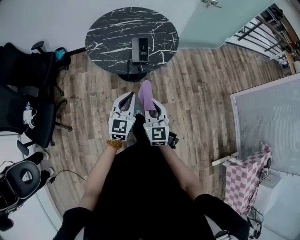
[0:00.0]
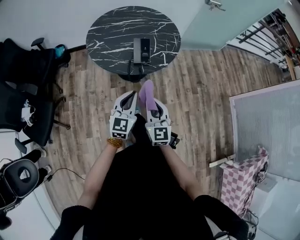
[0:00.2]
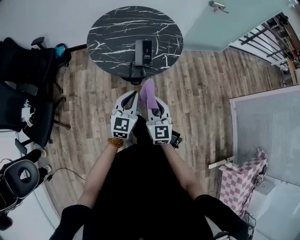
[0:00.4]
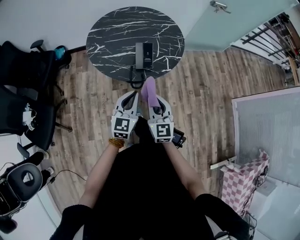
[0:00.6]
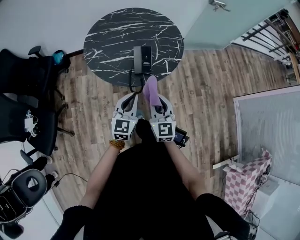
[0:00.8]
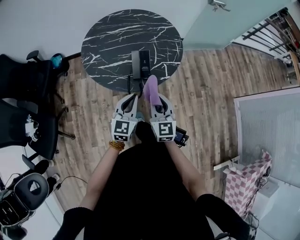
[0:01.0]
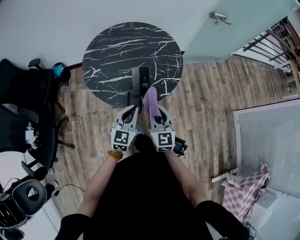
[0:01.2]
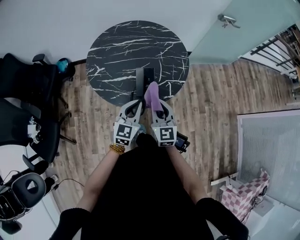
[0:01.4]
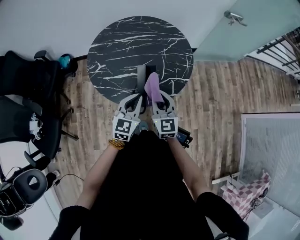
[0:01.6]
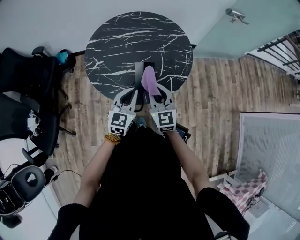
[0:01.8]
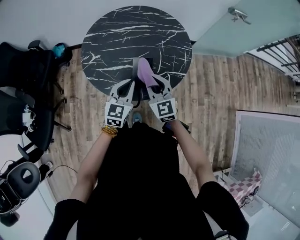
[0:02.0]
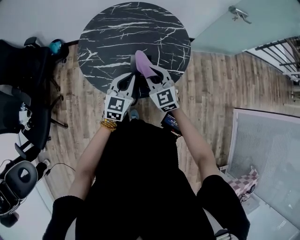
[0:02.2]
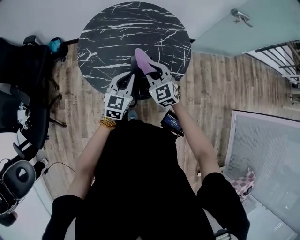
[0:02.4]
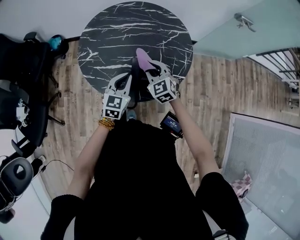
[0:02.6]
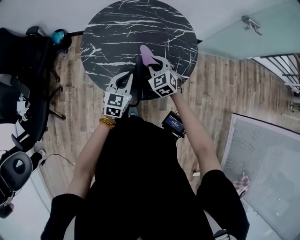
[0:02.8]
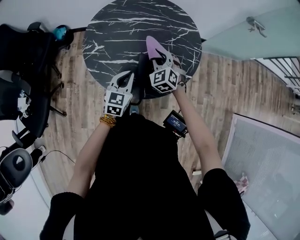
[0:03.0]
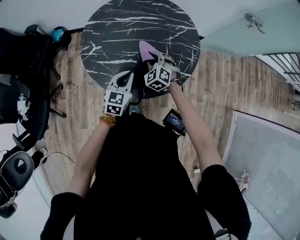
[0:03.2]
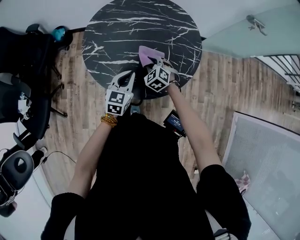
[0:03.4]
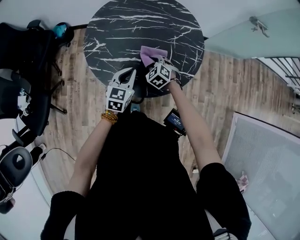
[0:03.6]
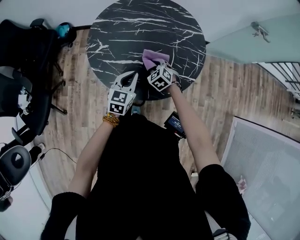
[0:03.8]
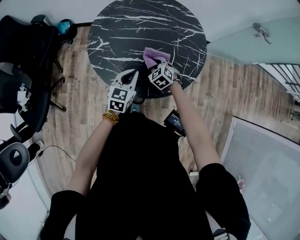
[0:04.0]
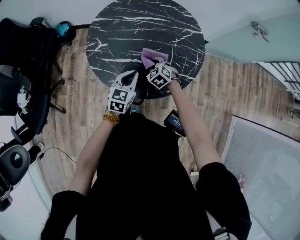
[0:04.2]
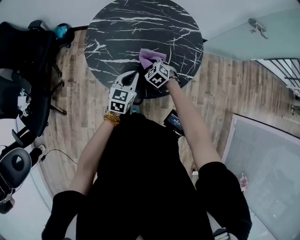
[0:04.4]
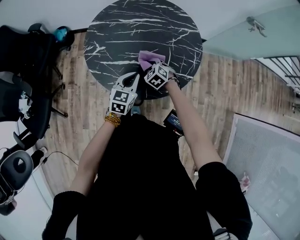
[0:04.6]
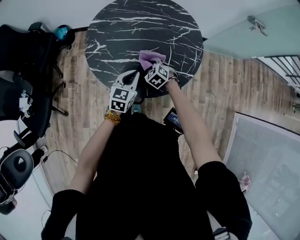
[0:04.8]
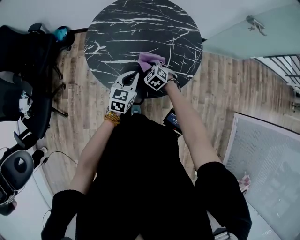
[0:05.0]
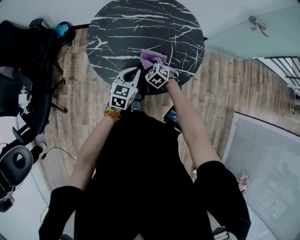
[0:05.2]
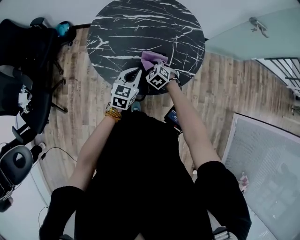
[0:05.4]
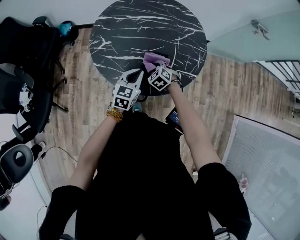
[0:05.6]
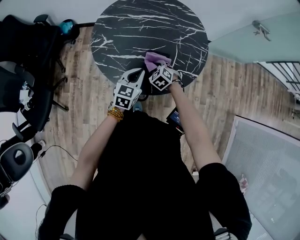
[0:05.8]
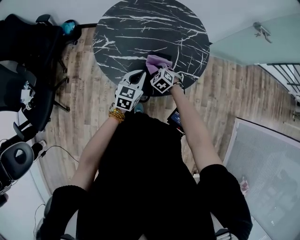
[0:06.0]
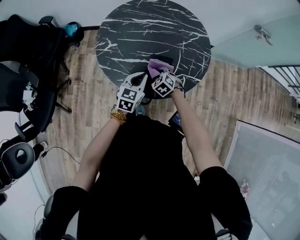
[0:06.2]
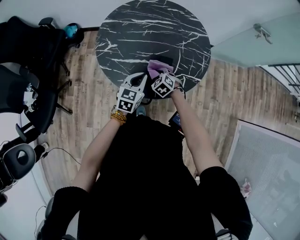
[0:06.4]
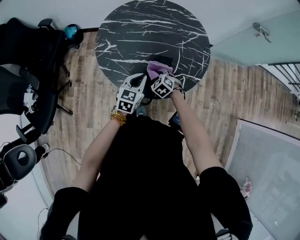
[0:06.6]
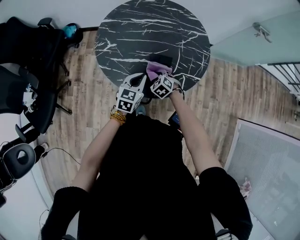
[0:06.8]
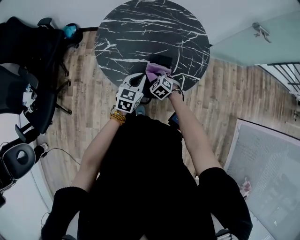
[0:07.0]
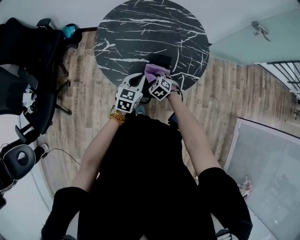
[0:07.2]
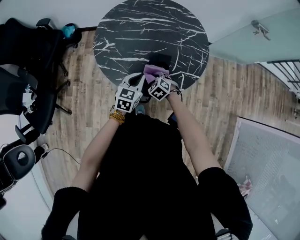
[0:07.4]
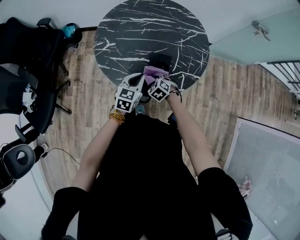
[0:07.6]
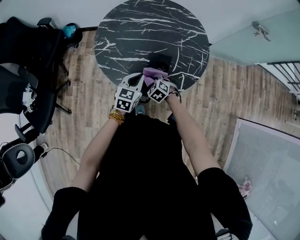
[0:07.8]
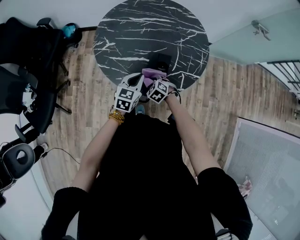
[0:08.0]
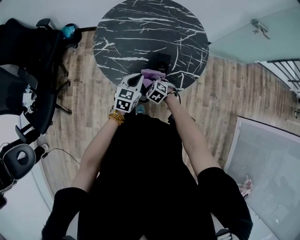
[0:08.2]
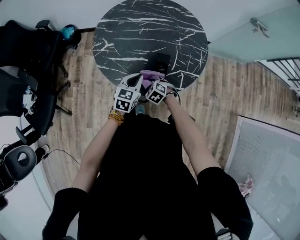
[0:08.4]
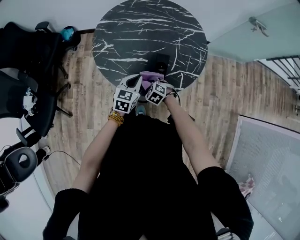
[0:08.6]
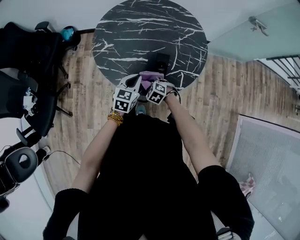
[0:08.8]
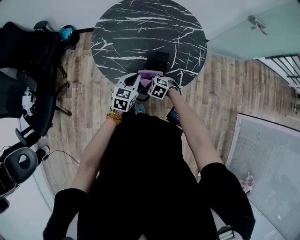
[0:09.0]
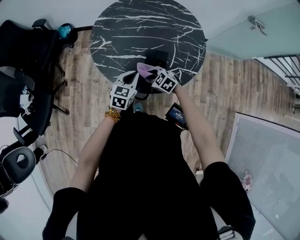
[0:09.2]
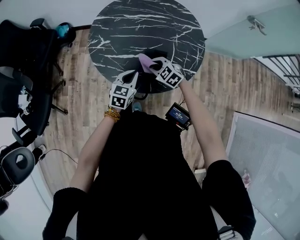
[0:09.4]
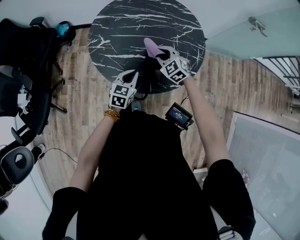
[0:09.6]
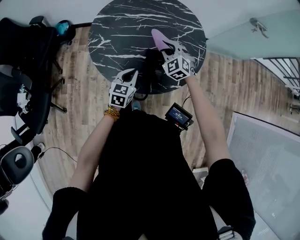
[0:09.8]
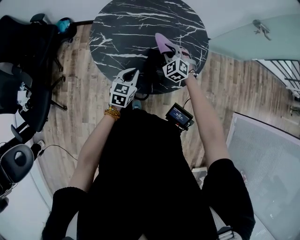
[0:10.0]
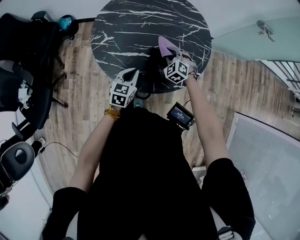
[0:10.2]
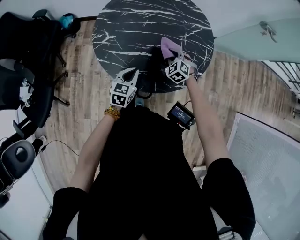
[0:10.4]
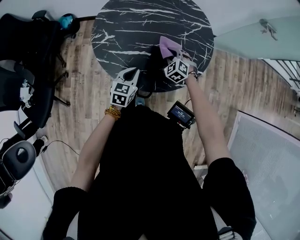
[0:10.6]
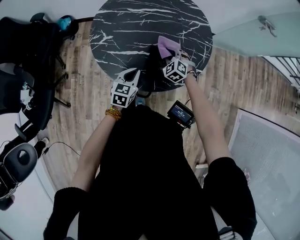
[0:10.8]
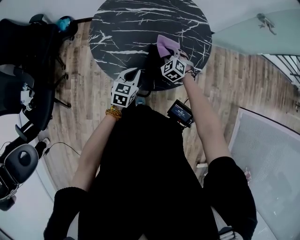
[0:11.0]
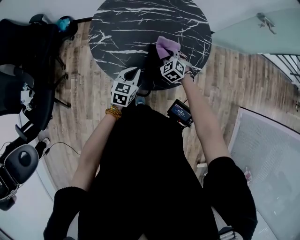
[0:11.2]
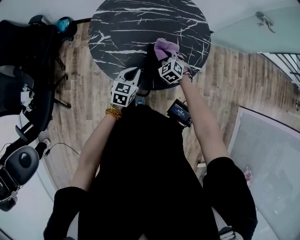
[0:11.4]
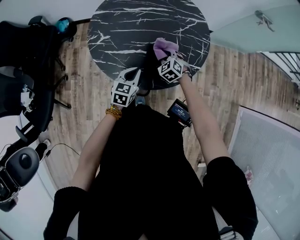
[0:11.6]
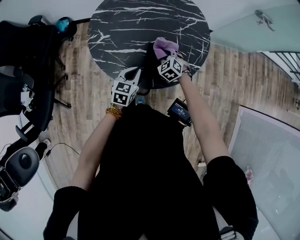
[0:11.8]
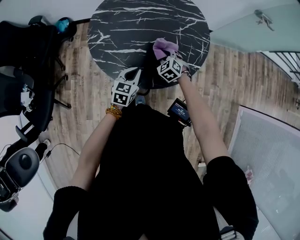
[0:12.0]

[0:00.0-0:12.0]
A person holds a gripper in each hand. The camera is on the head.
0:00.0 to 0:01.6: The two grippers go about 25 cm forward.
0:01.6 to 0:03.0: The left gripper is displaced forward and downward by some 15 cm. The right gripper shifts approximately 20 cm forward and downward, and changes its angle by about 40 degrees.
0:03.0 to 0:04.4: The right gripper travels downward by some 15 cm, and turns by about 30 degrees.
0:04.4 to 0:06.0: There are only small adjustments of the grippers.
0:06.0 to 0:07.6: The right gripper shifts approximately 5 cm backward.
0:07.6 to 0:09.0: The grippers move only a little.
0:09.0 to 0:10.4: The right gripper shifts some 20 cm forward, to the right and upward, and swivels about 30 degrees.
0:10.4 to 0:12.0: The grippers move only a little.

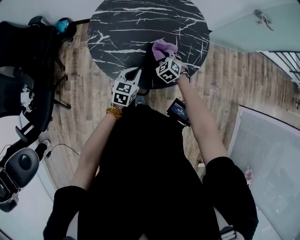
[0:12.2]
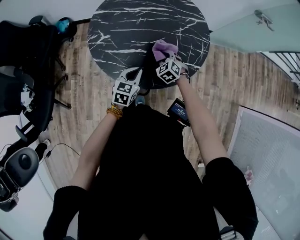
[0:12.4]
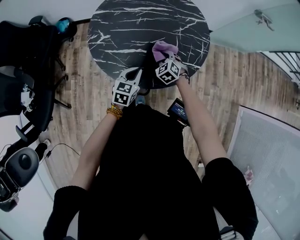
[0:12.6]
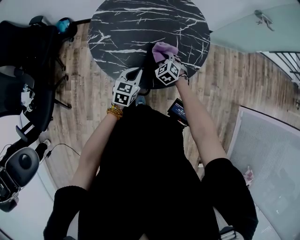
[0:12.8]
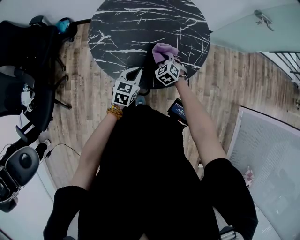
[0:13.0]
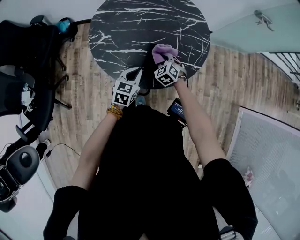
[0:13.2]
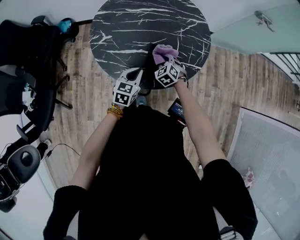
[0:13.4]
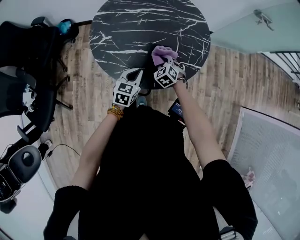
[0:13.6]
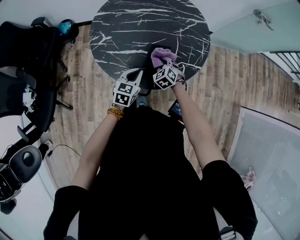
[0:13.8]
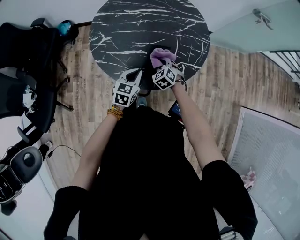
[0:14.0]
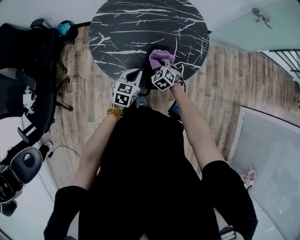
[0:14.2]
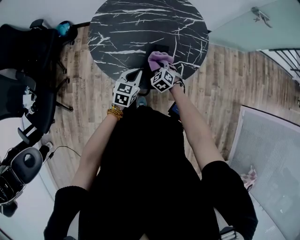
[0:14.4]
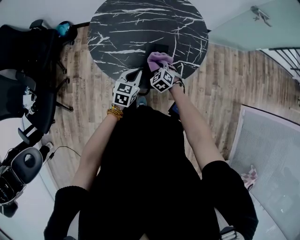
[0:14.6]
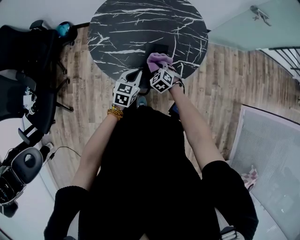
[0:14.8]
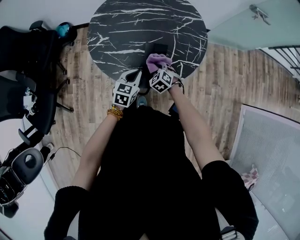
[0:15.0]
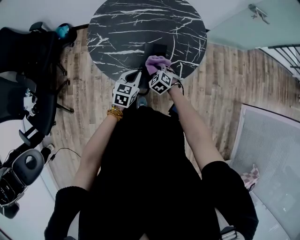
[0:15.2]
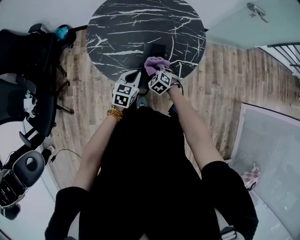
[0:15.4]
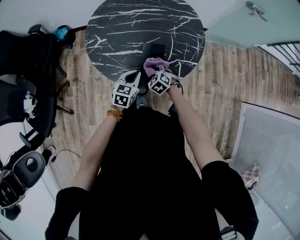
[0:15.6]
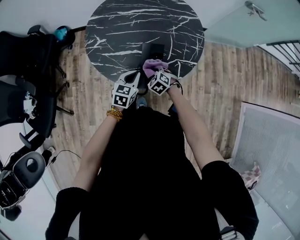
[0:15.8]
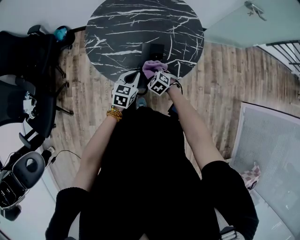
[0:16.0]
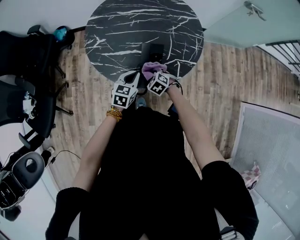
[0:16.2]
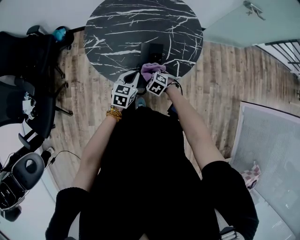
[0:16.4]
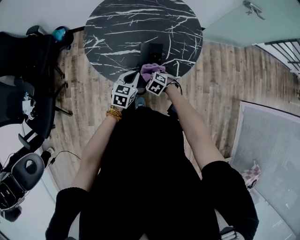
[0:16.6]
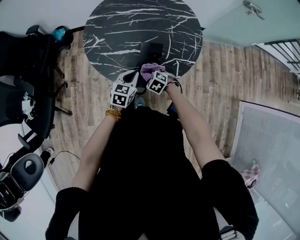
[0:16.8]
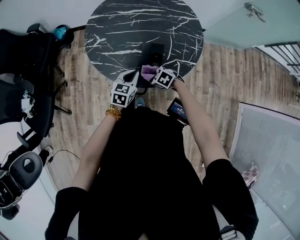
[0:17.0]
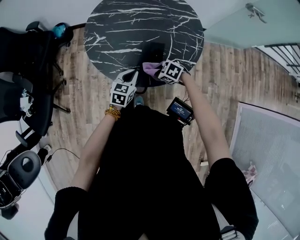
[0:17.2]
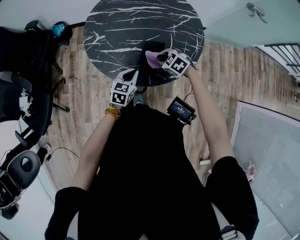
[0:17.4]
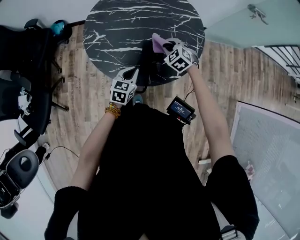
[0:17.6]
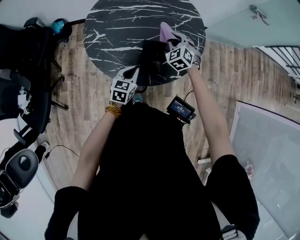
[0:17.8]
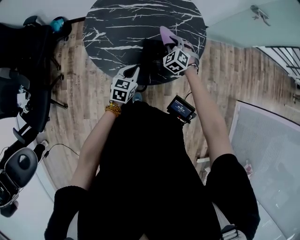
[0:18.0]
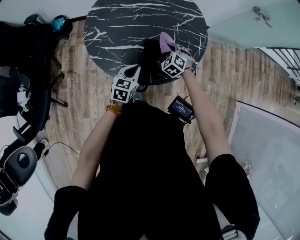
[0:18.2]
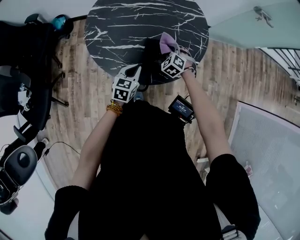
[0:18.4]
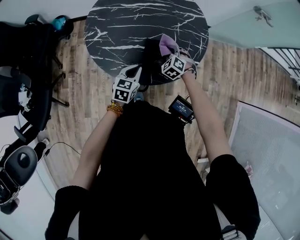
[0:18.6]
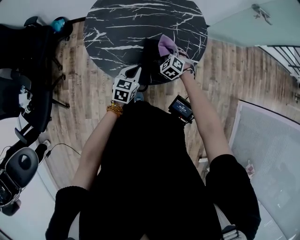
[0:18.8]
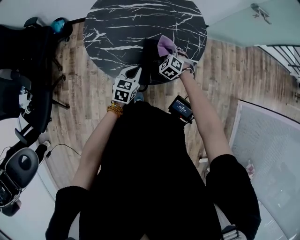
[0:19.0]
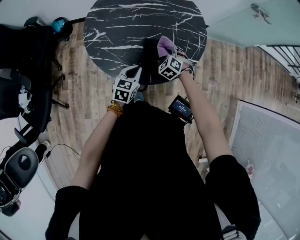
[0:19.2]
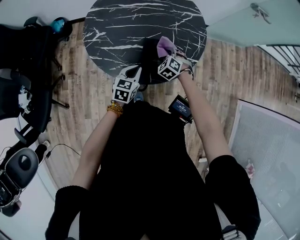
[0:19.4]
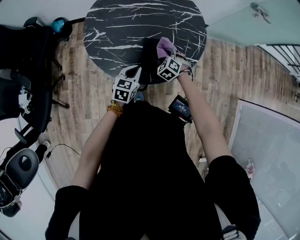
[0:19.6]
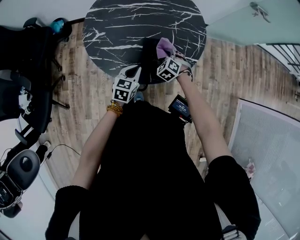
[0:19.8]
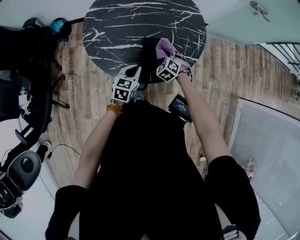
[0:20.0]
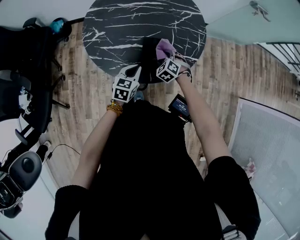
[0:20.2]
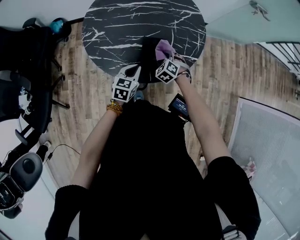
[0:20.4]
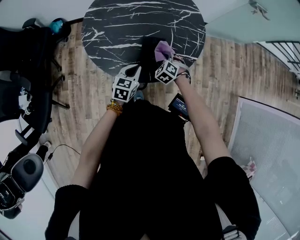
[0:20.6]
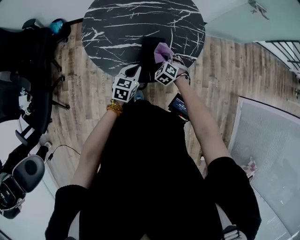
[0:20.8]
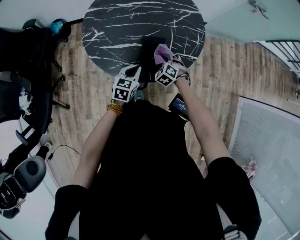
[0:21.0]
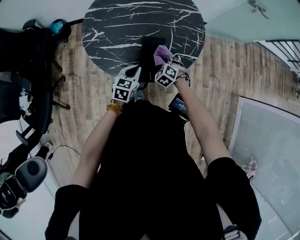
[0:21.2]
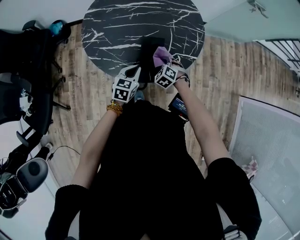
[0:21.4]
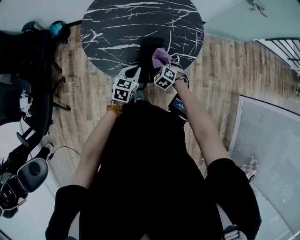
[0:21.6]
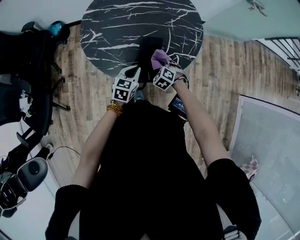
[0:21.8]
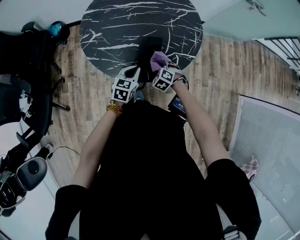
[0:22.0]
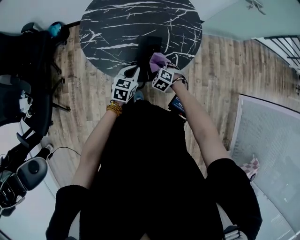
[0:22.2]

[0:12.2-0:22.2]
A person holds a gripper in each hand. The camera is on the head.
0:12.2 to 0:13.6: The grippers make only small movements.
0:13.6 to 0:15.0: The right gripper ends up approximately 5 cm from where it was.
0:15.0 to 0:16.4: The right gripper travels backward by approximately 5 cm.
0:16.4 to 0:18.0: The right gripper shifts by roughly 20 cm, and swivels approximately 30 degrees.
0:18.0 to 0:19.4: The right gripper heads downward and backward, covering approximately 10 cm.
0:19.4 to 0:20.8: The grippers make only small movements.
0:20.8 to 0:22.2: The right gripper goes roughly 5 cm backward.

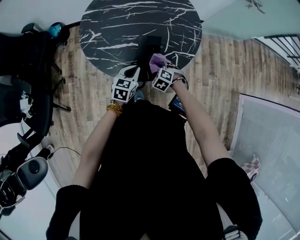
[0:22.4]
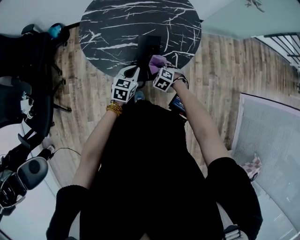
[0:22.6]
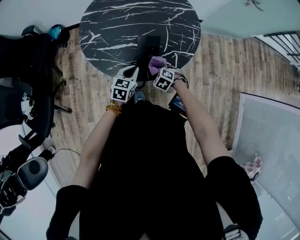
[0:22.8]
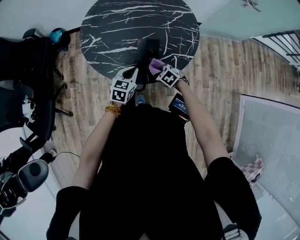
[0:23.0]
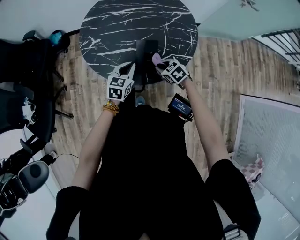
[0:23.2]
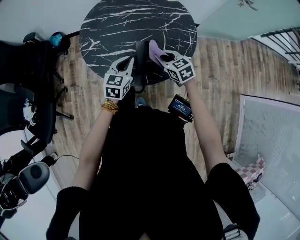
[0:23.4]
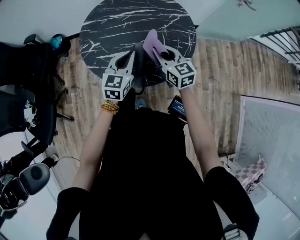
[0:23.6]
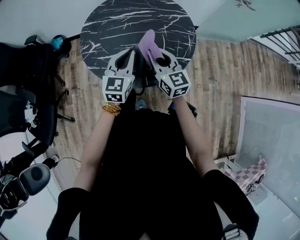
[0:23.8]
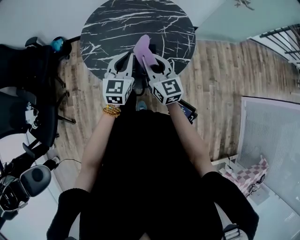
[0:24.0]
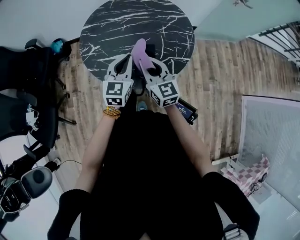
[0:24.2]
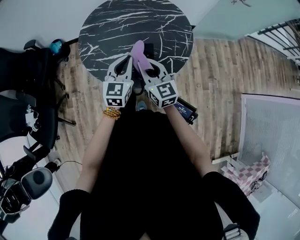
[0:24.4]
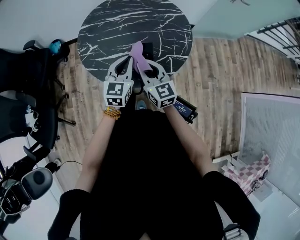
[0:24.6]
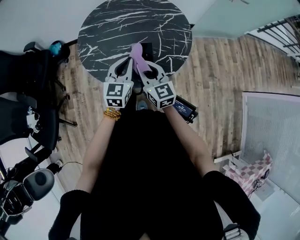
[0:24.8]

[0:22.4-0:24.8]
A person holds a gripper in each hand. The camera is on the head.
0:22.4 to 0:23.6: The right gripper shifts about 25 cm upward, and tips its fingers upward by roughly 50 degrees; the left gripper is displaced upward by some 15 cm, and changes its angle by approximately 20 degrees.
0:23.6 to 0:24.8: The right gripper goes about 10 cm backward and to the left.
